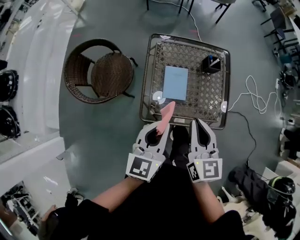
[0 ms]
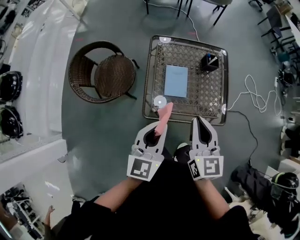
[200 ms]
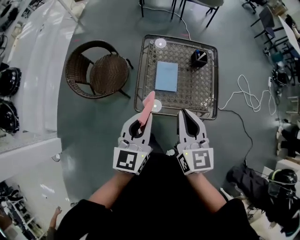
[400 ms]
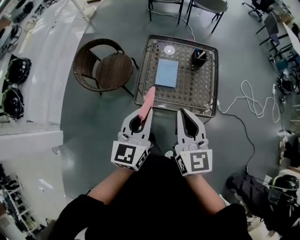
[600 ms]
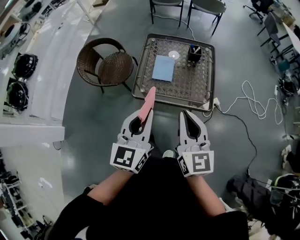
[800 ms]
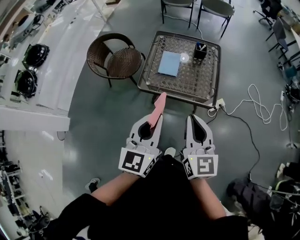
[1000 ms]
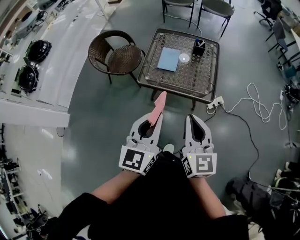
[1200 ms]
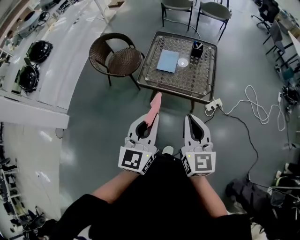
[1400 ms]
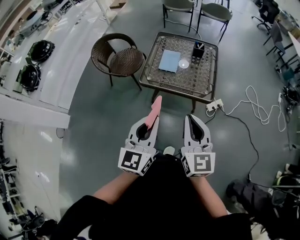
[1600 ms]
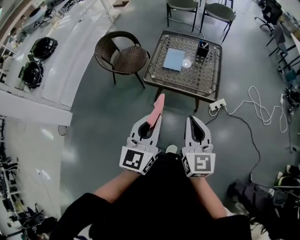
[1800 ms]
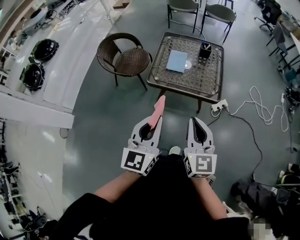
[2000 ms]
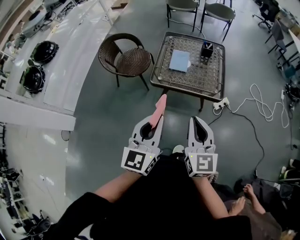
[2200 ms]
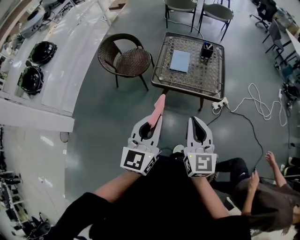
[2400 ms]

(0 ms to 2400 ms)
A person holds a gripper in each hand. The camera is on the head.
0 ms - 1200 ms: The grippers both shift backward and to the right by some 35 cm.
1200 ms - 2400 ms: Both grippers move to the left and backward, some 15 cm.

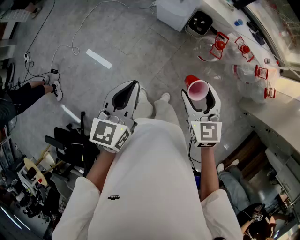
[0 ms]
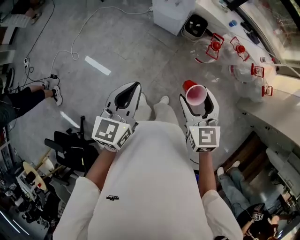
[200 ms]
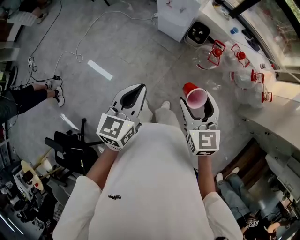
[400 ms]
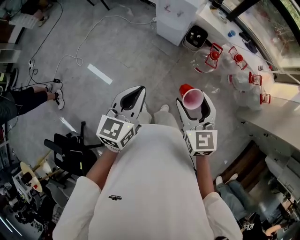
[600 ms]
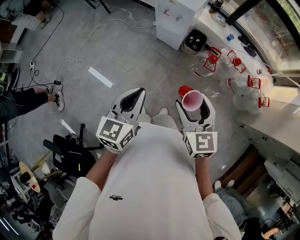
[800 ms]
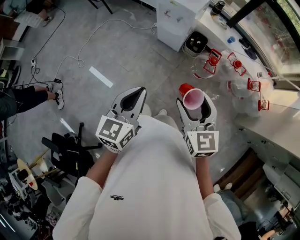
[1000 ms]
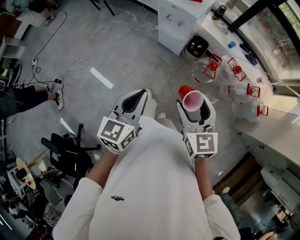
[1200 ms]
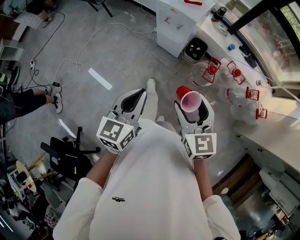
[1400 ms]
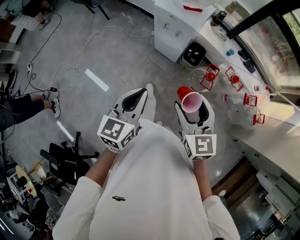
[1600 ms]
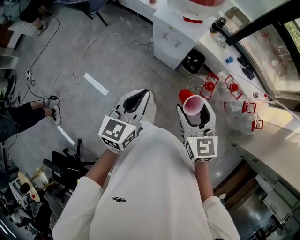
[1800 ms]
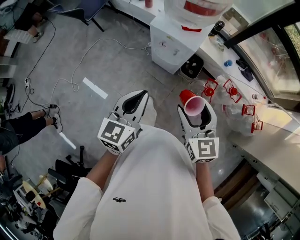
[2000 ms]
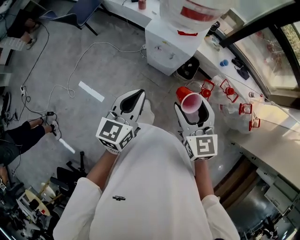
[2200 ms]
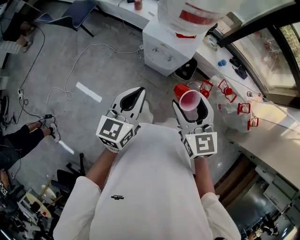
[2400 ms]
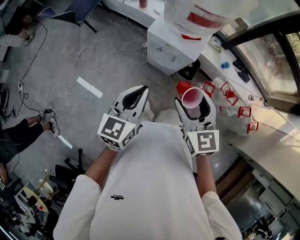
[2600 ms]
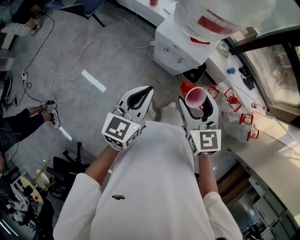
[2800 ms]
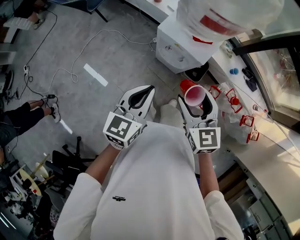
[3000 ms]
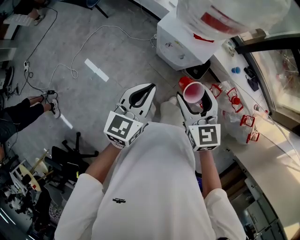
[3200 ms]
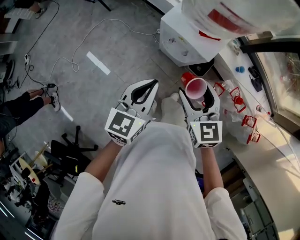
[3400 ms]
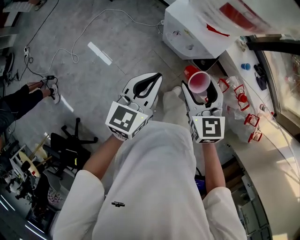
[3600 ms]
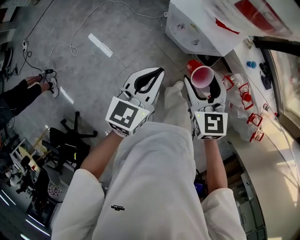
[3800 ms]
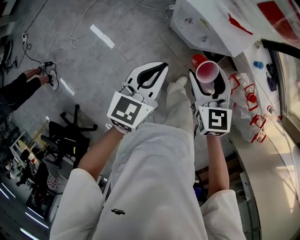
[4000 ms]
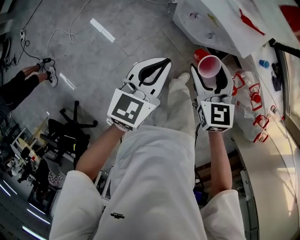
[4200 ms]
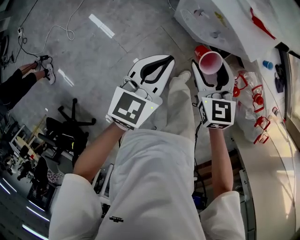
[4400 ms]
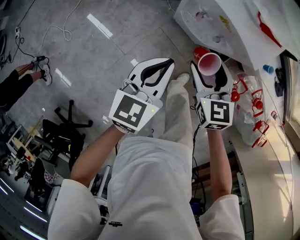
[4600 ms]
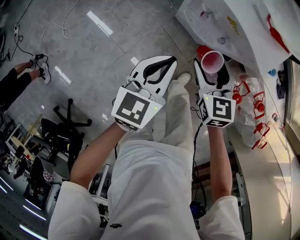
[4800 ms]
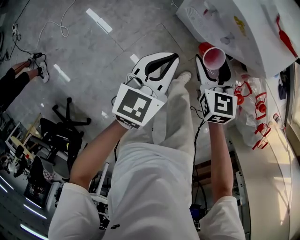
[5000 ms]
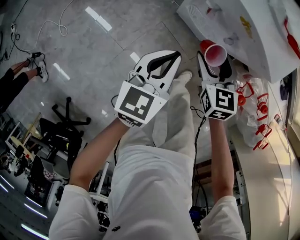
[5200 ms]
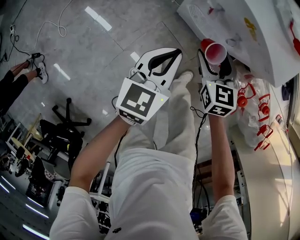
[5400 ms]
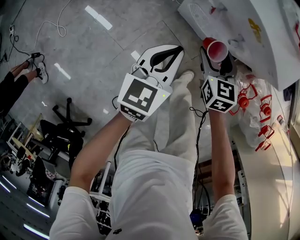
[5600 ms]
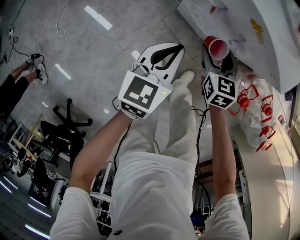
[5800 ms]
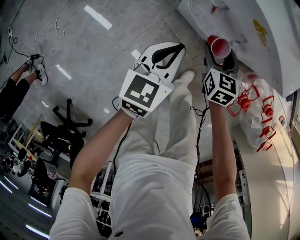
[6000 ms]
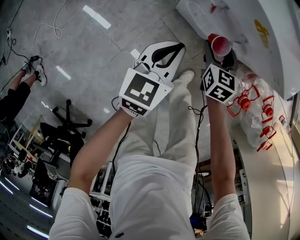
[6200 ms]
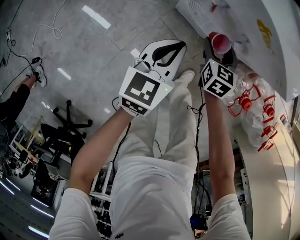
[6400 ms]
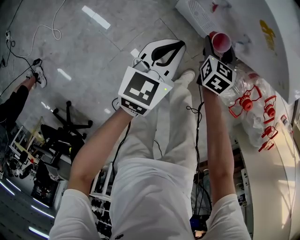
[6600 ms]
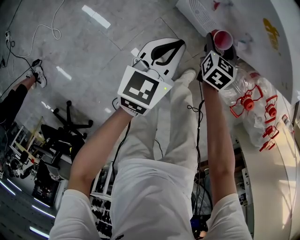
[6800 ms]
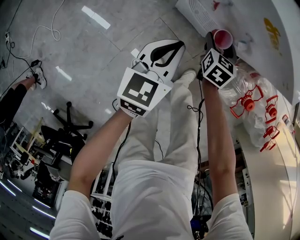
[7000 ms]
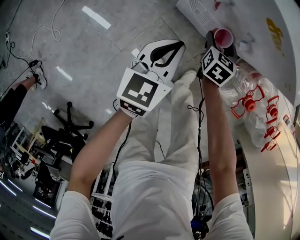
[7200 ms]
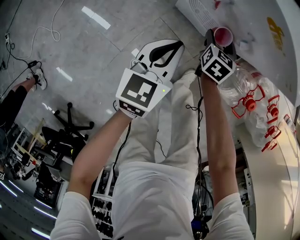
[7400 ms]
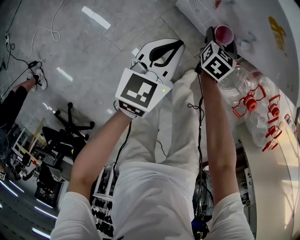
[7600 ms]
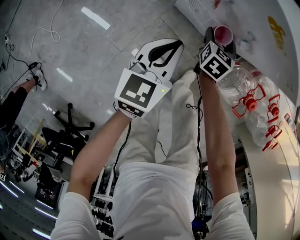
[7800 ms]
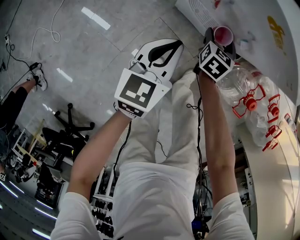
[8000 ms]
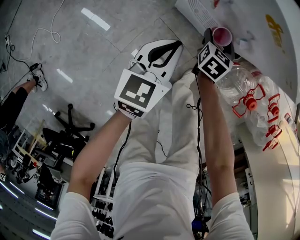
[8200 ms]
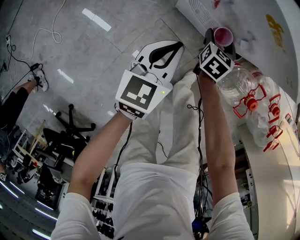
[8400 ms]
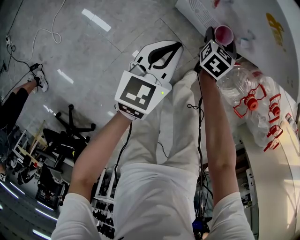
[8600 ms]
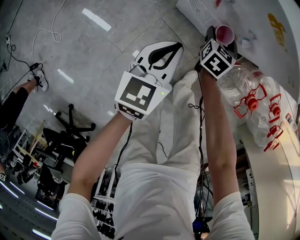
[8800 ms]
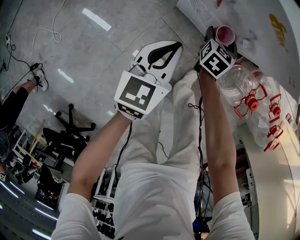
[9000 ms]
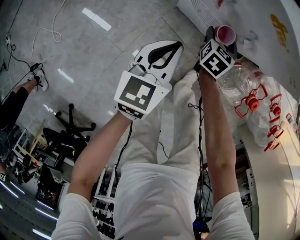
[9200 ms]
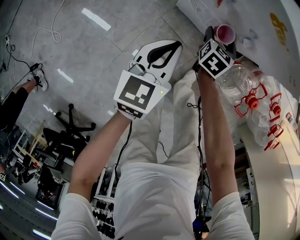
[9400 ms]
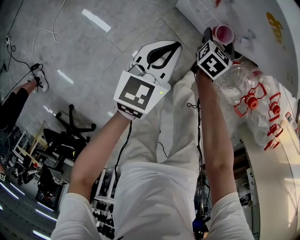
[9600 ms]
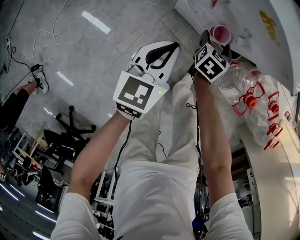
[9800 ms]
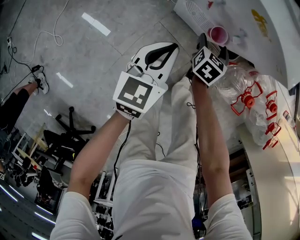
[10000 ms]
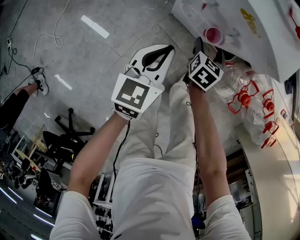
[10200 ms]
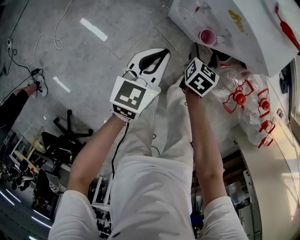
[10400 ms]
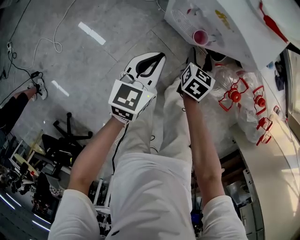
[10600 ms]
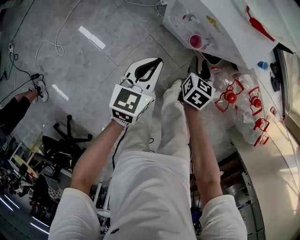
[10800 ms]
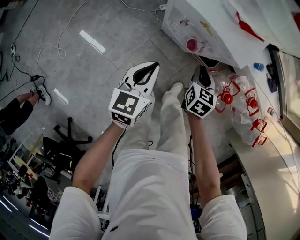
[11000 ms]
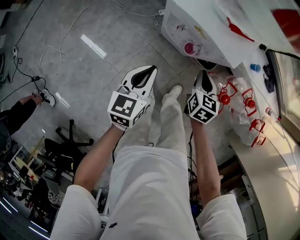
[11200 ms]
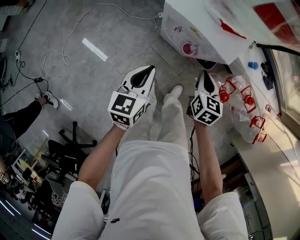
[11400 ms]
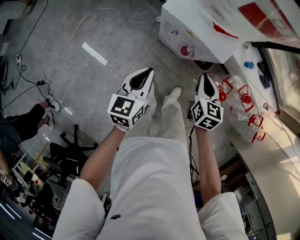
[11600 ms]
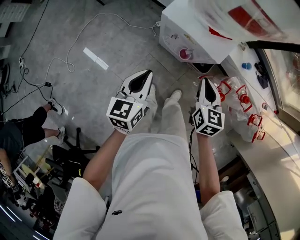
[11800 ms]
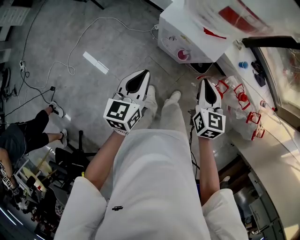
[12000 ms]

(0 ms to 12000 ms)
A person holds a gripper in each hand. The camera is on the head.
0 ms - 1600 ms: The right gripper moves forward and upward, about 10 cm; the left gripper goes some 10 cm forward.
1600 ms - 3000 ms: The grippers both shift forward by some 25 cm.
3000 ms - 4400 ms: The two grippers go some 20 cm downward.
4400 ms - 6000 ms: The two grippers go roughly 20 cm downward.
6000 ms - 7600 ms: The right gripper moves downward, roughly 10 cm, and changes its angle by about 20 degrees.
7600 ms - 9000 ms: The two grippers keep their place.
9000 ms - 10400 ms: The right gripper heads upward and backward, covering roughly 10 cm. The left gripper heads upward, covering some 5 cm.
10400 ms - 12000 ms: The left gripper shifts roughly 20 cm upward. The right gripper is displaced upward by some 35 cm, swivels approximately 20 degrees, and closes its fingers.

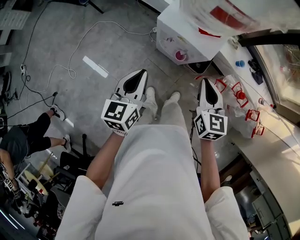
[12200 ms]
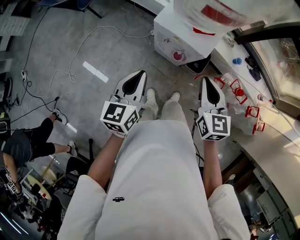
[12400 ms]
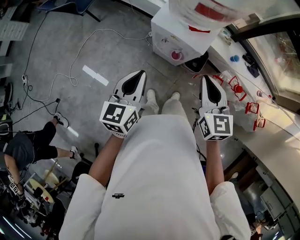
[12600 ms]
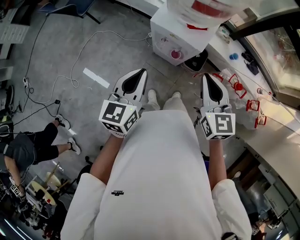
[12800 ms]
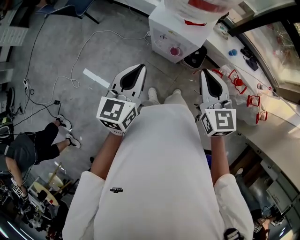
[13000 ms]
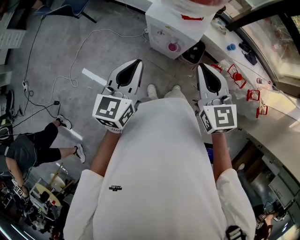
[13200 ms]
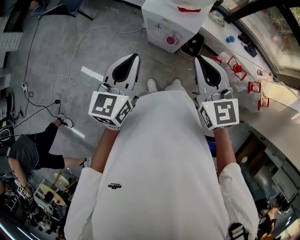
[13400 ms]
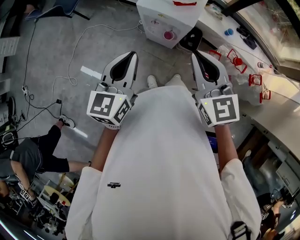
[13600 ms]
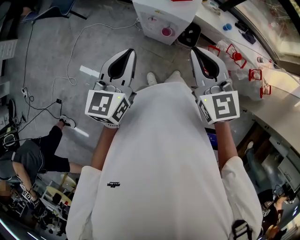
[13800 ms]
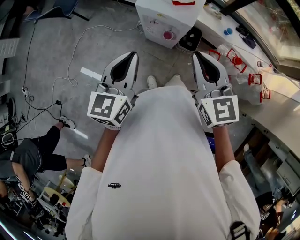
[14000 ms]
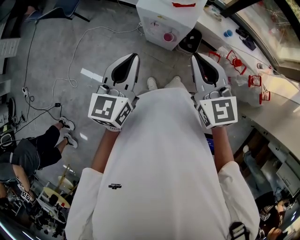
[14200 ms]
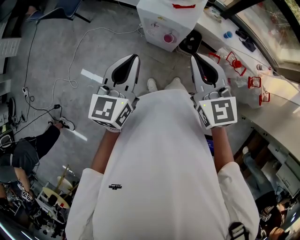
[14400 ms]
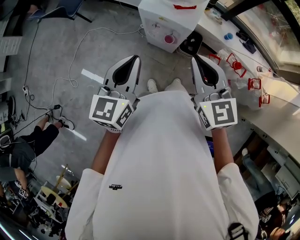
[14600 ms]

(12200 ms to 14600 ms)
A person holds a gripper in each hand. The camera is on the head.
12200 ms - 13400 ms: The right gripper travels upward and backward by approximately 15 cm; the left gripper heads upward, covering some 10 cm.
13400 ms - 14600 ms: The grippers move only a little.

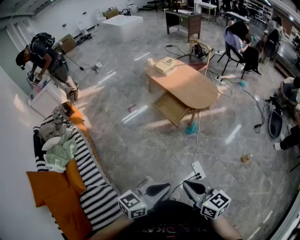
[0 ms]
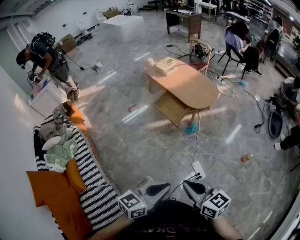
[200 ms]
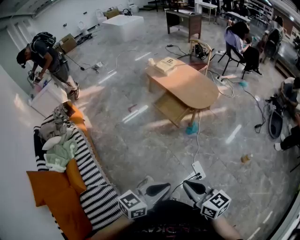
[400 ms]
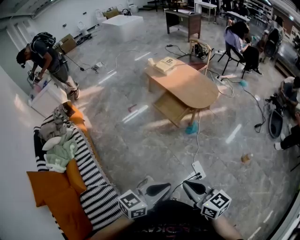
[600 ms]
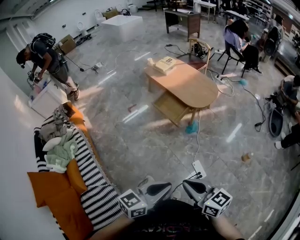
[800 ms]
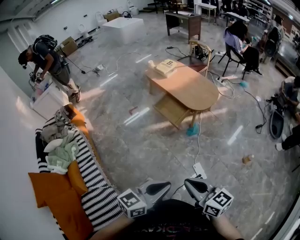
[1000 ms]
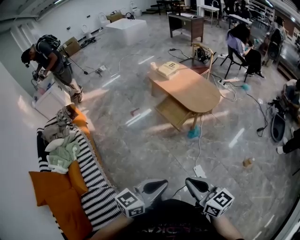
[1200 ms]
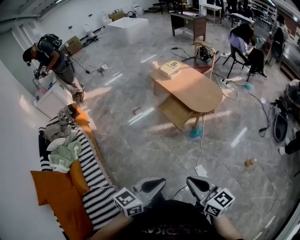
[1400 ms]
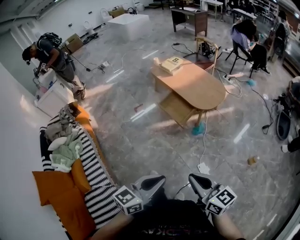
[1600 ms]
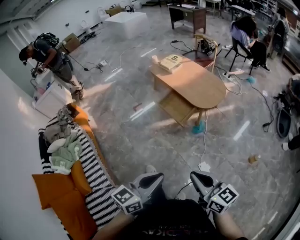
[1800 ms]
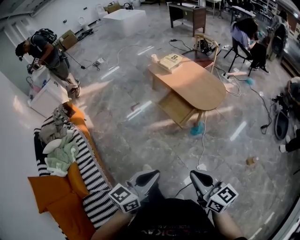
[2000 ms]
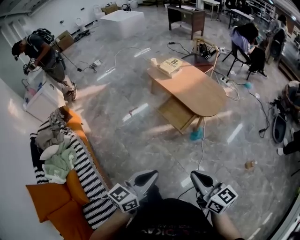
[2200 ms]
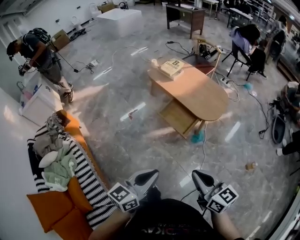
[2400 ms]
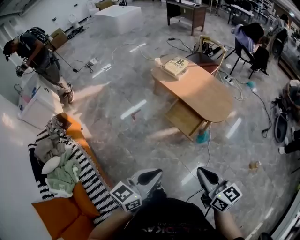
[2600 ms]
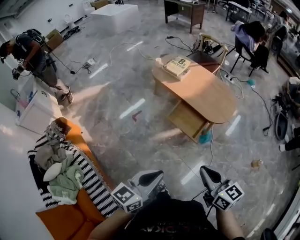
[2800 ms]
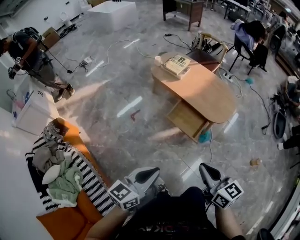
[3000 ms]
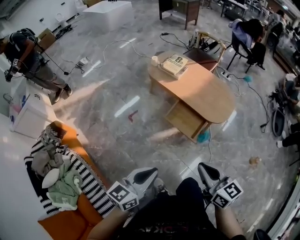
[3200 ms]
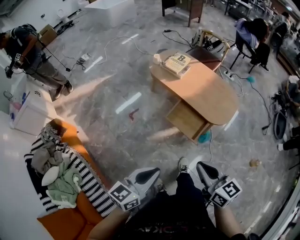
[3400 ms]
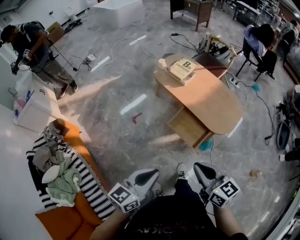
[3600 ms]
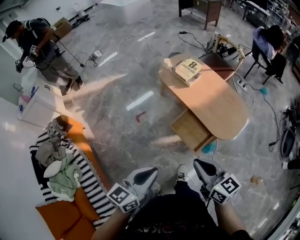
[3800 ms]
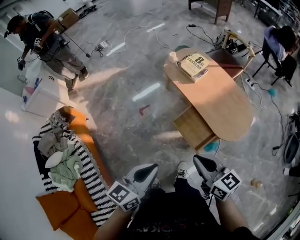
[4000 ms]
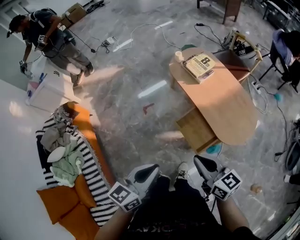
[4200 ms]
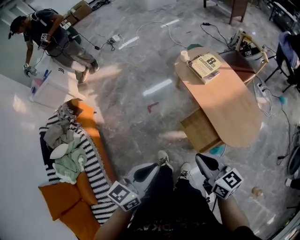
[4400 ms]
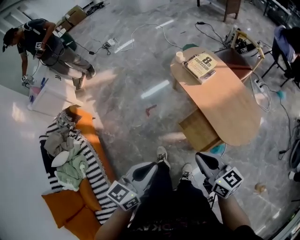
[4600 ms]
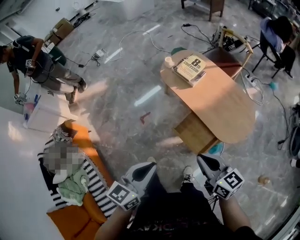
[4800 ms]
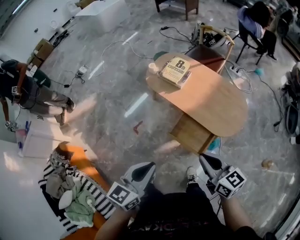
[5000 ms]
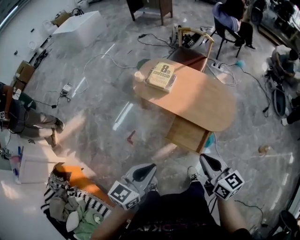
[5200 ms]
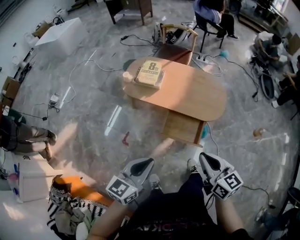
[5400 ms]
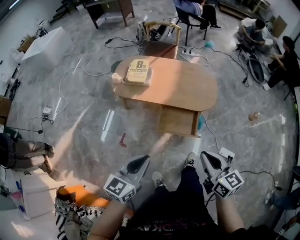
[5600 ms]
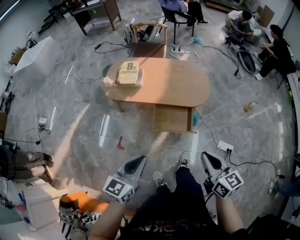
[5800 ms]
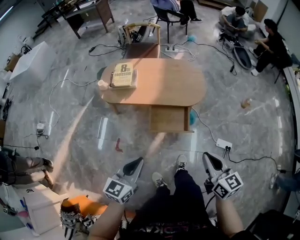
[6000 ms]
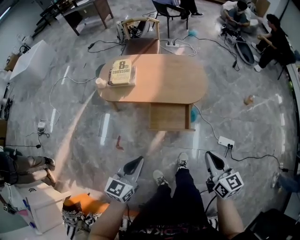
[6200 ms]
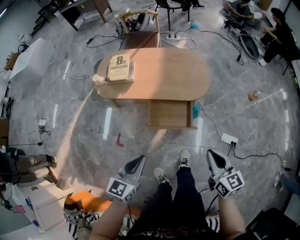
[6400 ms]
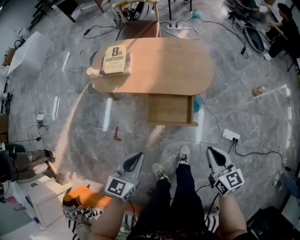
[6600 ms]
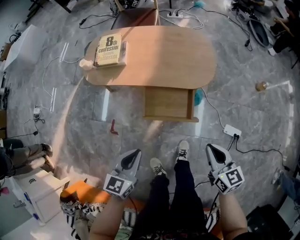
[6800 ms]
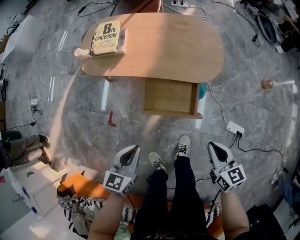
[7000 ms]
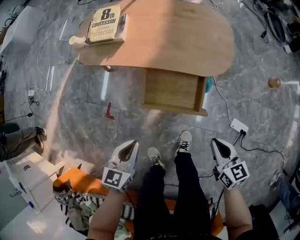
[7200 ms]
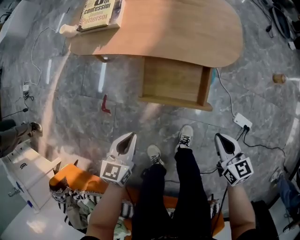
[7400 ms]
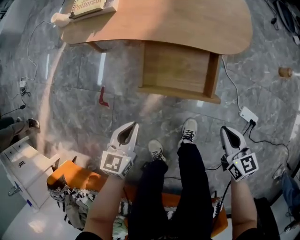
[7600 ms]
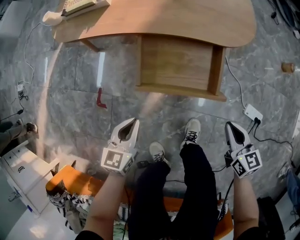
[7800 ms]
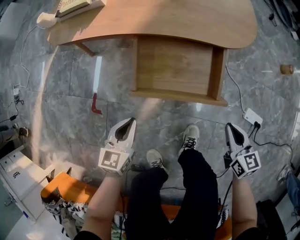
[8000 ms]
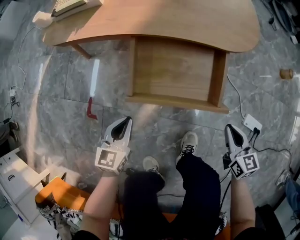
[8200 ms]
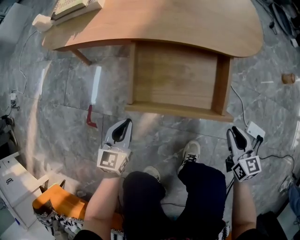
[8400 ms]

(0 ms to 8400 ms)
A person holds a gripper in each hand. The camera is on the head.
0 ms - 1400 ms: The grippers make only small movements.
1400 ms - 2800 ms: The two grippers go some 40 cm forward and to the left.
2800 ms - 4200 ms: Both grippers move forward, some 25 cm. The right gripper changes its angle by roughly 20 degrees, while the left gripper changes its angle by roughly 20 degrees.
4200 ms - 5600 ms: The right gripper shifts by roughly 10 cm, and changes its angle by approximately 60 degrees, while the left gripper moves approximately 20 cm, and swivels roughly 50 degrees.
5600 ms - 7000 ms: The right gripper heads downward and to the right, covering roughly 30 cm; the left gripper heads downward, covering approximately 25 cm.
7000 ms - 8400 ms: Both grippers move downward, some 40 cm.
